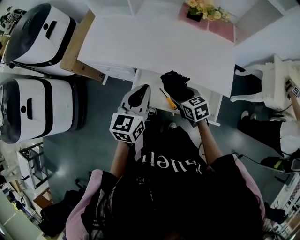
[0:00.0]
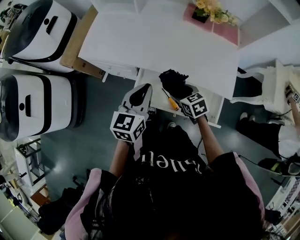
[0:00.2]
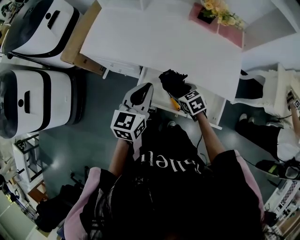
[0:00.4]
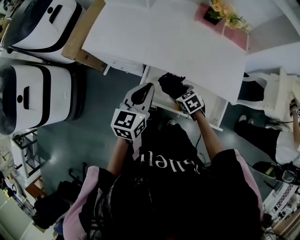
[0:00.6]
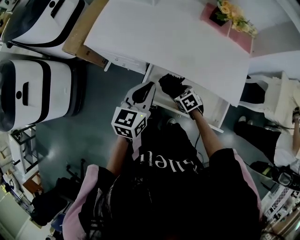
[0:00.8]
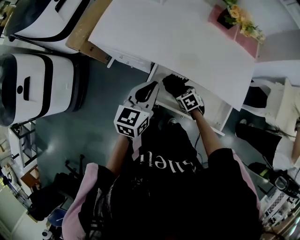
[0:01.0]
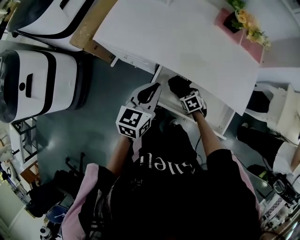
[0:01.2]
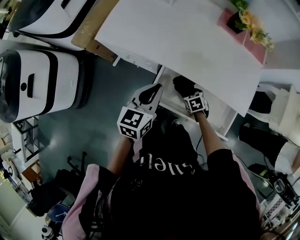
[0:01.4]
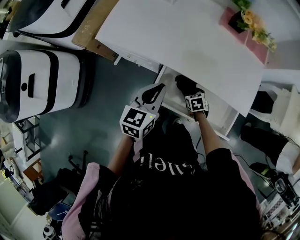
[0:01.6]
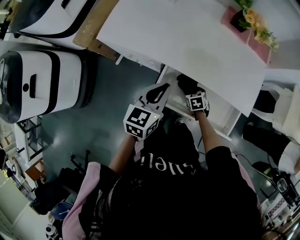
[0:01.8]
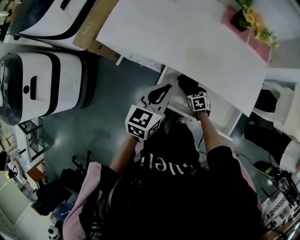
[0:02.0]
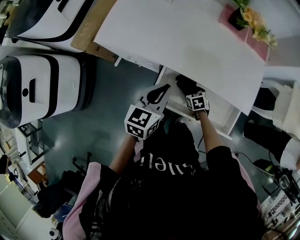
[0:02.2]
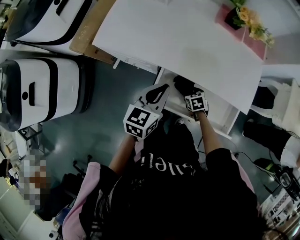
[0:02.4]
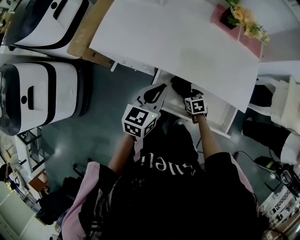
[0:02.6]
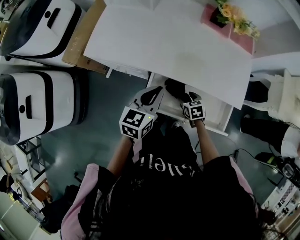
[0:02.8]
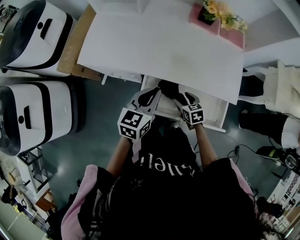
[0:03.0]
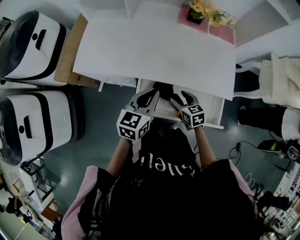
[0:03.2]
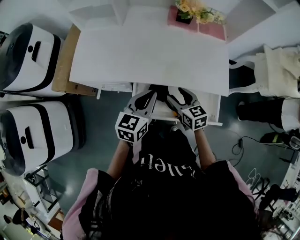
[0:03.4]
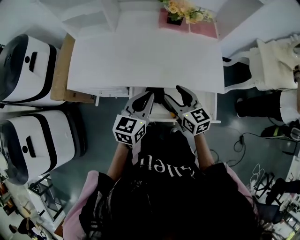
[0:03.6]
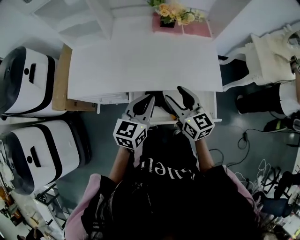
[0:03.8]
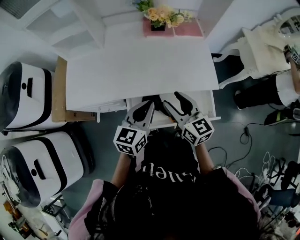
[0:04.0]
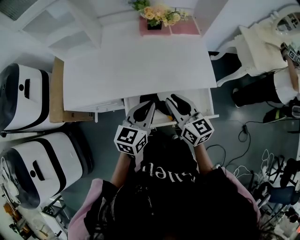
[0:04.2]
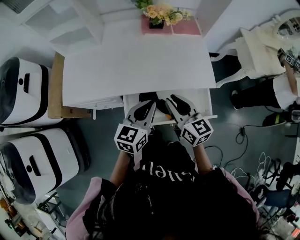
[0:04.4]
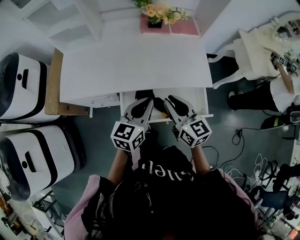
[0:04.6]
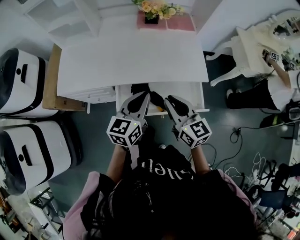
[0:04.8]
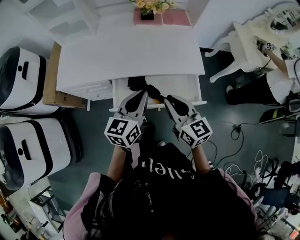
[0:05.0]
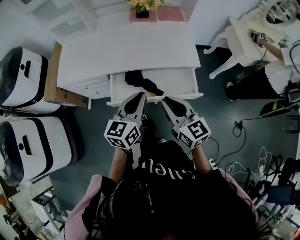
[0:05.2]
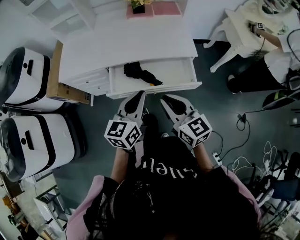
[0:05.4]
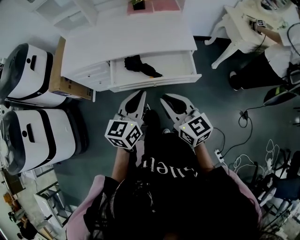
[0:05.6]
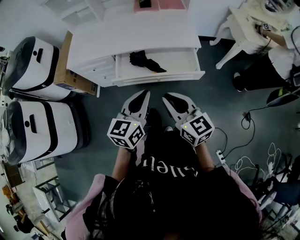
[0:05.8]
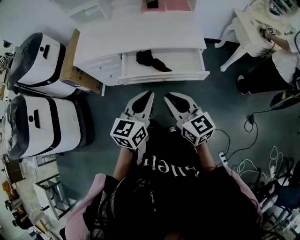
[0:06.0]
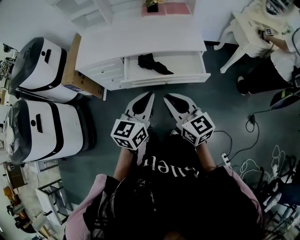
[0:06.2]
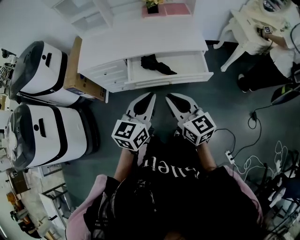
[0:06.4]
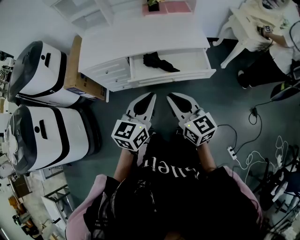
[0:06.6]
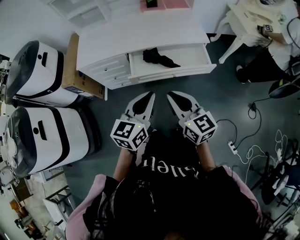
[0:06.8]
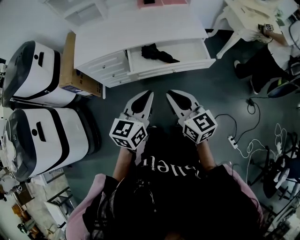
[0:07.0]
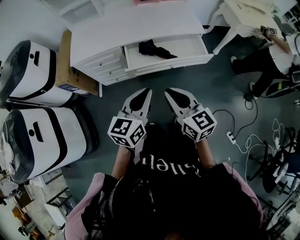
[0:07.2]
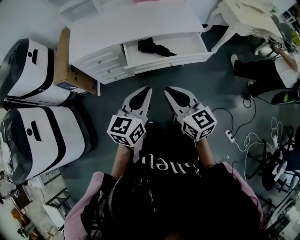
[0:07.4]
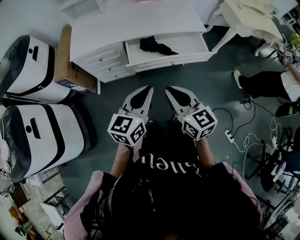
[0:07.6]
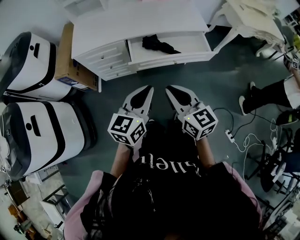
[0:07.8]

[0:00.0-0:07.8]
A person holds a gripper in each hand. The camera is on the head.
0:00.0 to 0:01.6: The left gripper goes about 10 cm to the left, downward and forward, while the right gripper travels downward by some 20 cm, and turns by roughly 20 degrees.
0:01.6 to 0:03.2: The left gripper shifts approximately 10 cm to the right. Meanwhile the right gripper travels upward by roughly 15 cm, and turns by about 30 degrees.
0:03.2 to 0:04.6: The left gripper shifts about 10 cm to the right and upward. The right gripper moves upward, about 20 cm, angles its fingers upward, by some 30 degrees, and closes its fingers.
0:04.6 to 0:06.2: Both grippers travel together backward, about 30 cm.
0:06.2 to 0:07.8: The right gripper travels to the left and backward by roughly 15 cm. Meanwhile the left gripper is displaced to the left by about 15 cm.

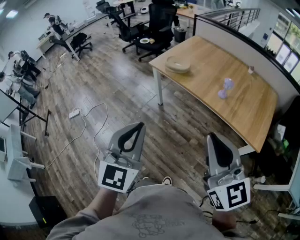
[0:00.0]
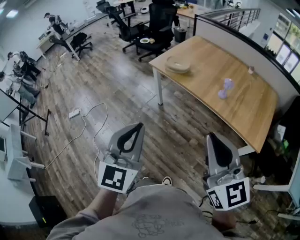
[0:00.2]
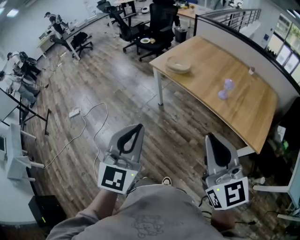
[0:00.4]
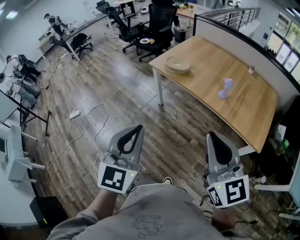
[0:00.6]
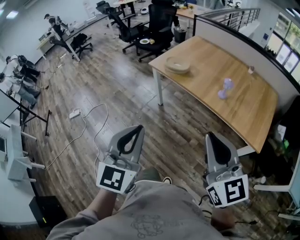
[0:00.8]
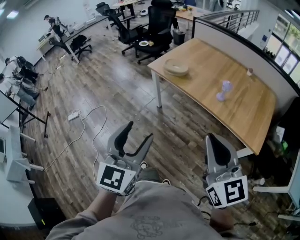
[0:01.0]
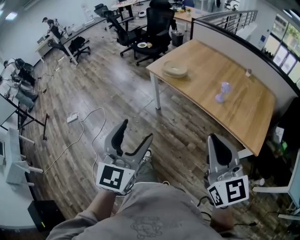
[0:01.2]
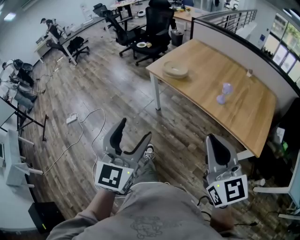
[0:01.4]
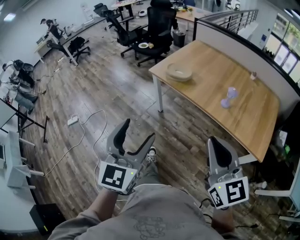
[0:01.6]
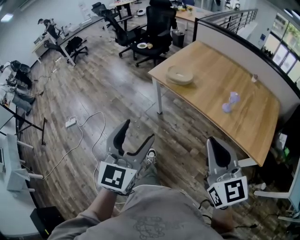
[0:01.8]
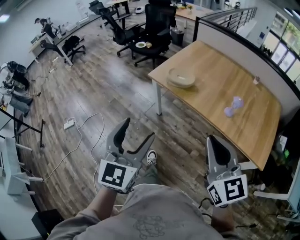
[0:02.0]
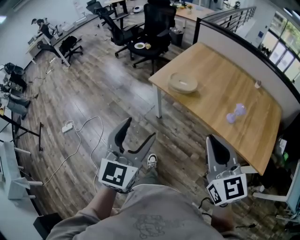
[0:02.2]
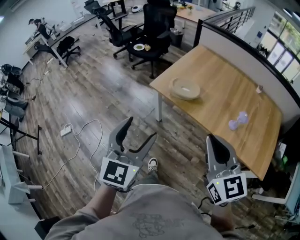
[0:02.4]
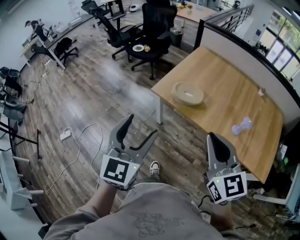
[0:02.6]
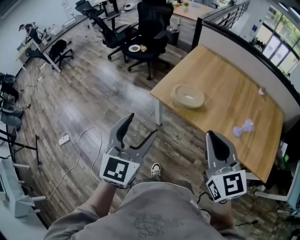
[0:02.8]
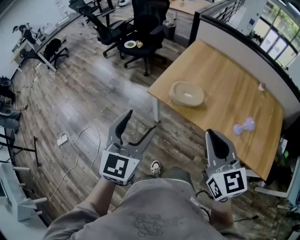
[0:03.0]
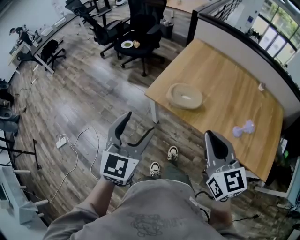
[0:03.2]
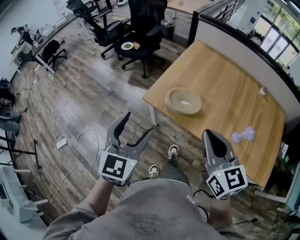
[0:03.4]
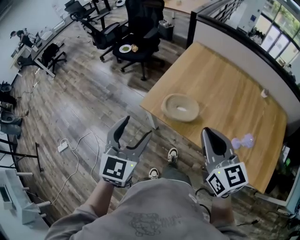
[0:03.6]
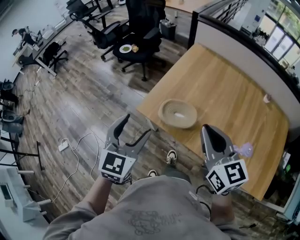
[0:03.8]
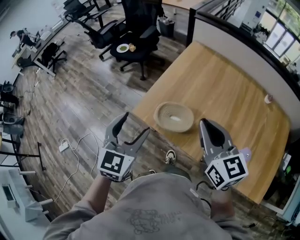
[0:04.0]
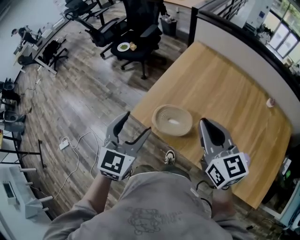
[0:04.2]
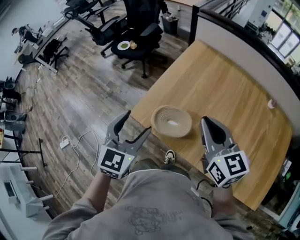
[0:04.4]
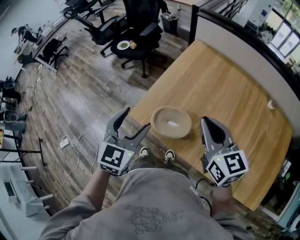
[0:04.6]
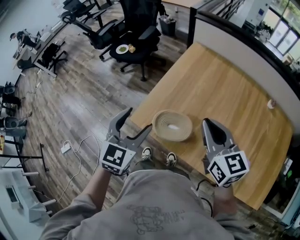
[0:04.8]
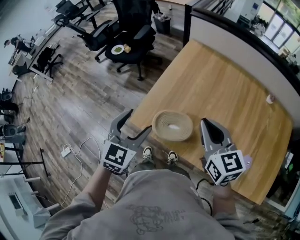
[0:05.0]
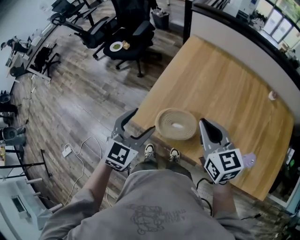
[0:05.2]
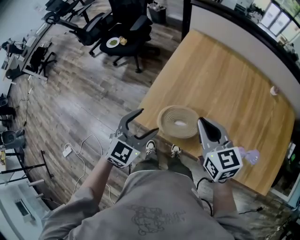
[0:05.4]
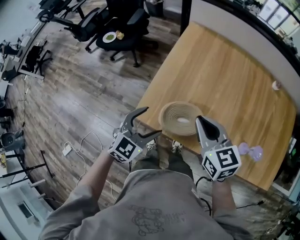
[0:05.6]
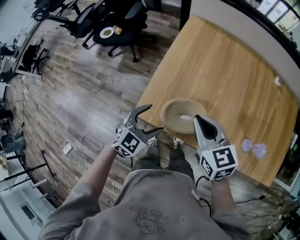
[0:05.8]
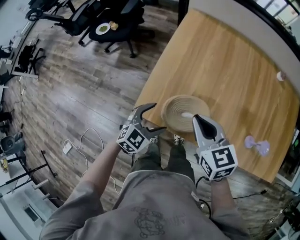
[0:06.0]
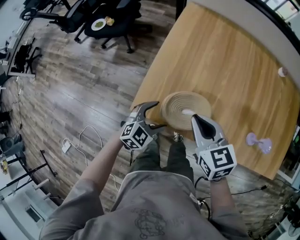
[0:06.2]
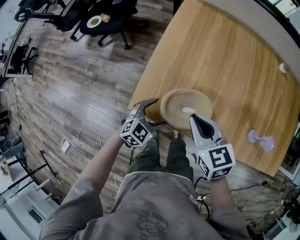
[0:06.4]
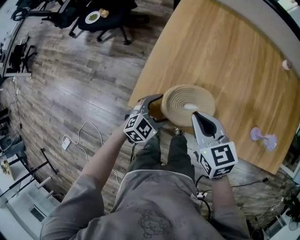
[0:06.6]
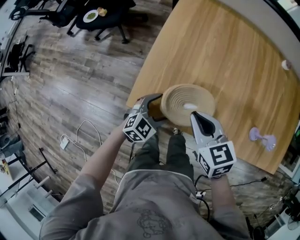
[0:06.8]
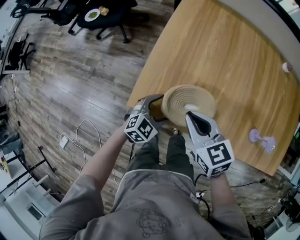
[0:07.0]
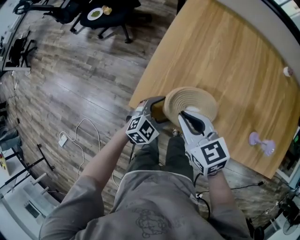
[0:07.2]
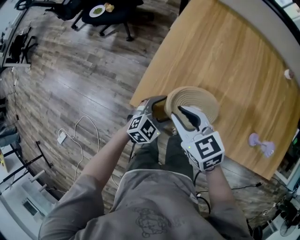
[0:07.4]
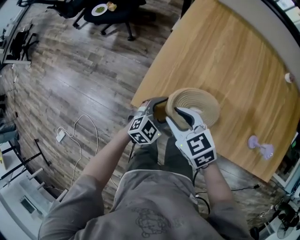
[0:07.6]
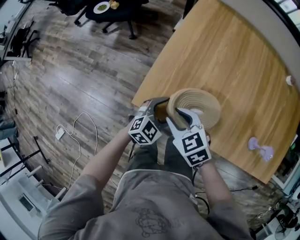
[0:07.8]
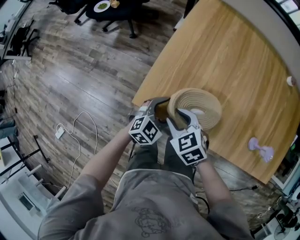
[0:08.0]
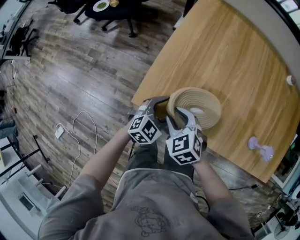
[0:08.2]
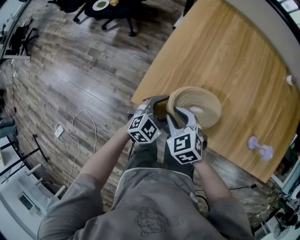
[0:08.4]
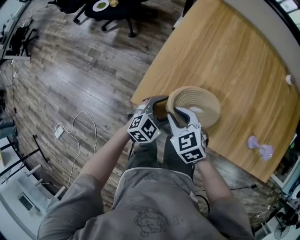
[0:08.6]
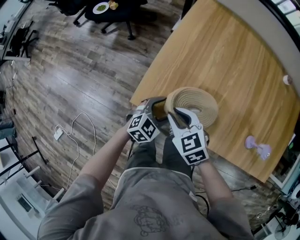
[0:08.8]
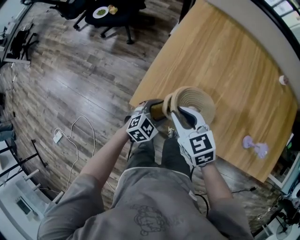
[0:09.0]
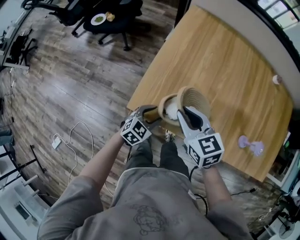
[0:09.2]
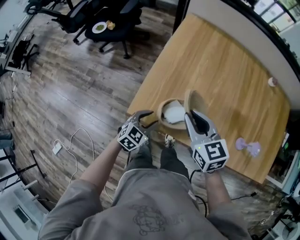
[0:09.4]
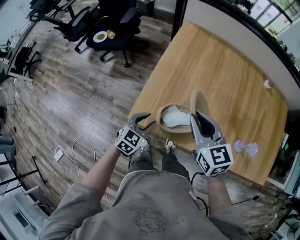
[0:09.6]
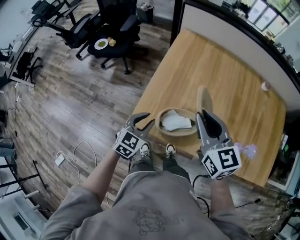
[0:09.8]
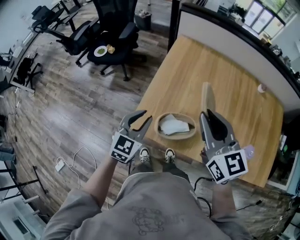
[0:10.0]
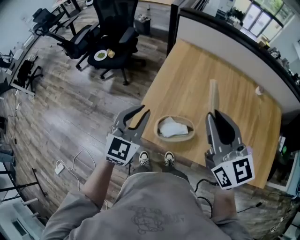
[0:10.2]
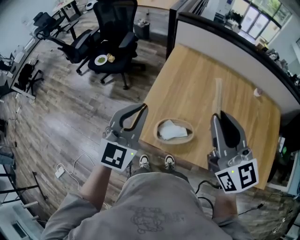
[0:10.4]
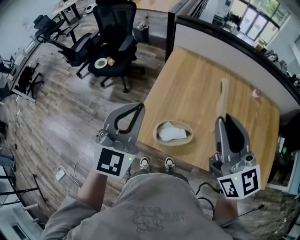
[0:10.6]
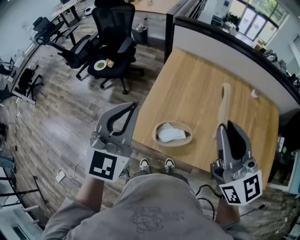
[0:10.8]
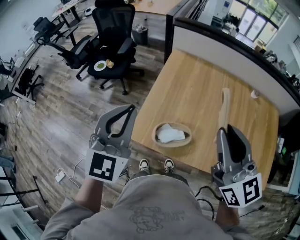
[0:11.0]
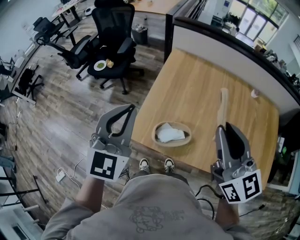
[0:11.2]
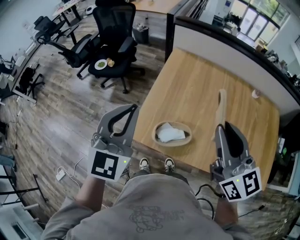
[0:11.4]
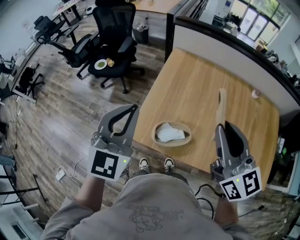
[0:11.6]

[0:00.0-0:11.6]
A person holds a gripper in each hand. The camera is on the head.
0:00.0 to 0:01.4: The right gripper ends up about 5 cm from where it was, while the left gripper opens.
0:01.4 to 0:02.8: The left gripper is displaced forward by some 40 cm; the right gripper moves forward and to the left, about 40 cm.
0:02.8 to 0:04.4: The grippers both shift forward by approximately 30 cm.
0:04.4 to 0:05.8: The left gripper heads downward, covering about 20 cm, and changes its angle by approximately 40 degrees; the right gripper heads downward and to the left, covering approximately 15 cm.
0:05.8 to 0:07.2: The left gripper goes roughly 15 cm downward, while the right gripper moves downward and to the left, some 10 cm.
0:07.2 to 0:08.8: The right gripper heads downward, covering about 5 cm.
0:08.8 to 0:10.2: The right gripper travels upward and to the right by roughly 35 cm, and angles its fingers upward, by some 40 degrees. Meanwhile the left gripper shifts approximately 30 cm upward, turns by some 40 degrees, and closes its fingers.
0:10.2 to 0:11.6: The right gripper changes place by approximately 5 cm, while the left gripper travels upward by approximately 10 cm.

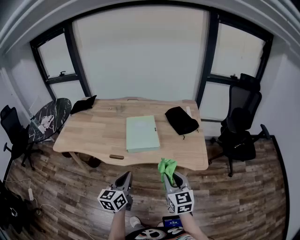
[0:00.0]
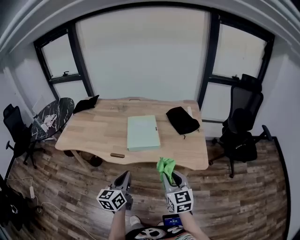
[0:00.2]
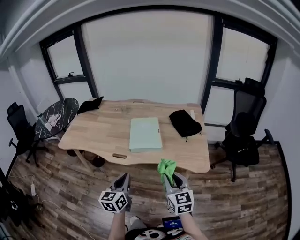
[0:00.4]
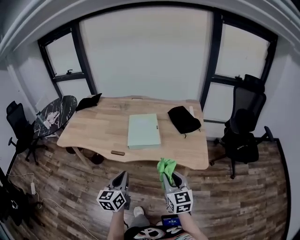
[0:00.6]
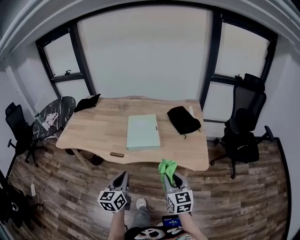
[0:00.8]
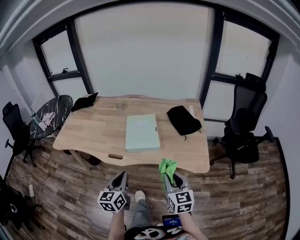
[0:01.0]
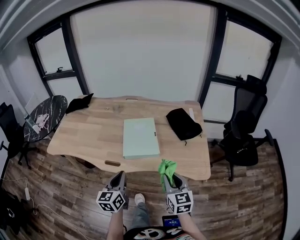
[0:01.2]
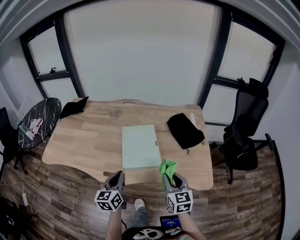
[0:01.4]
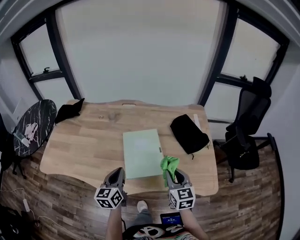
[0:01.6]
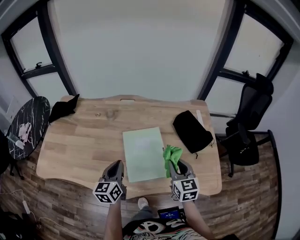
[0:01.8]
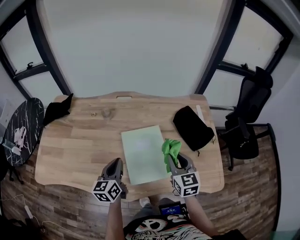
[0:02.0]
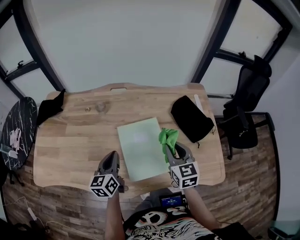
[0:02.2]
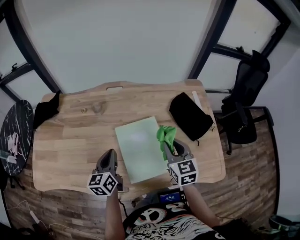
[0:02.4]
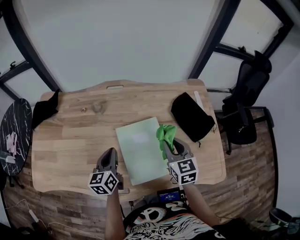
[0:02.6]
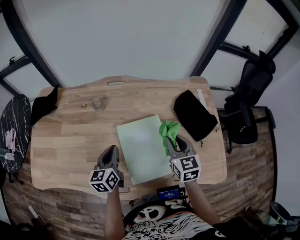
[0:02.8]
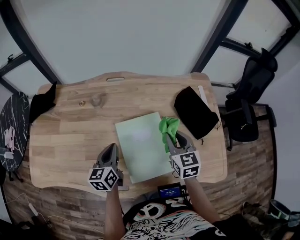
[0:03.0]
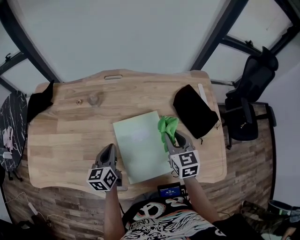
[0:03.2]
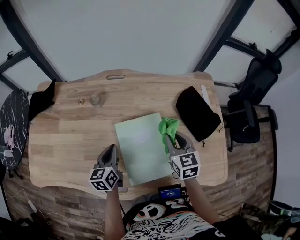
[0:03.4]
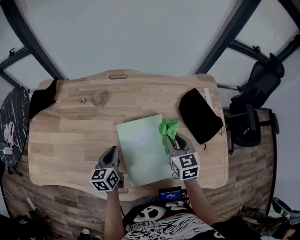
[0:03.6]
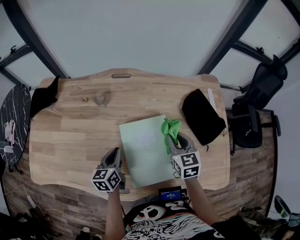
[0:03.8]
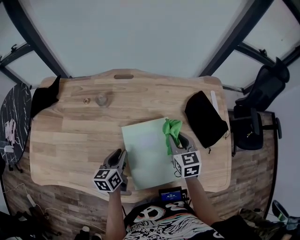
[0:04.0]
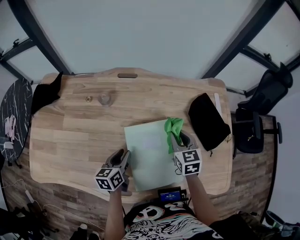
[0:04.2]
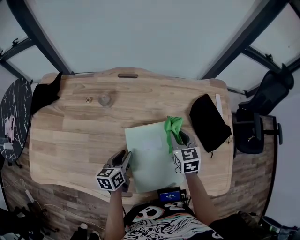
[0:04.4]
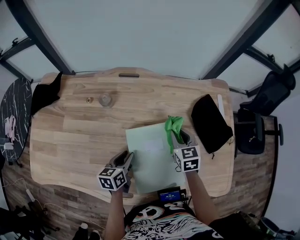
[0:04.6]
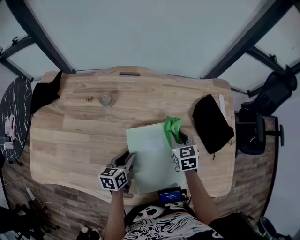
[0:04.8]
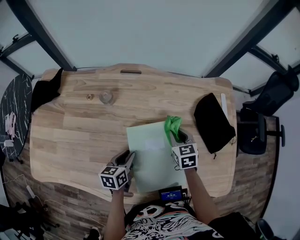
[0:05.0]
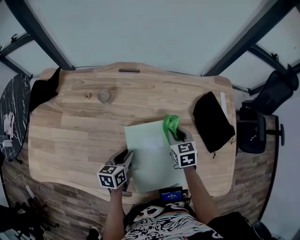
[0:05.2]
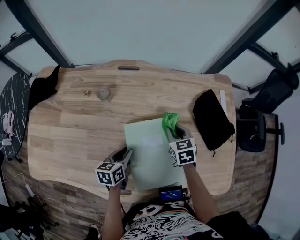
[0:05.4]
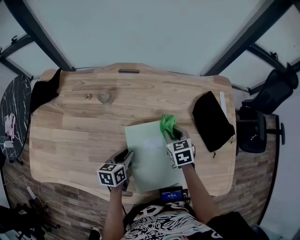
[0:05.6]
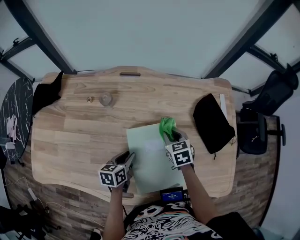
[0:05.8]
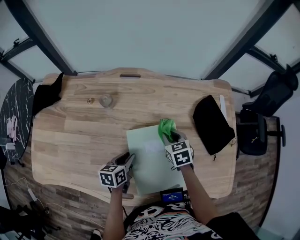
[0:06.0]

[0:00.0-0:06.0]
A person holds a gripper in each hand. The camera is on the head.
0:00.0 to 0:01.6: The two grippers go some 25 cm forward.
0:01.6 to 0:03.0: The left gripper travels forward and downward by some 20 cm. The right gripper moves forward, about 20 cm.
0:03.0 to 0:04.4: The left gripper is displaced downward by roughly 10 cm, and opens up; the right gripper goes some 10 cm forward and downward.
0:04.4 to 0:06.0: The right gripper travels downward by roughly 5 cm.
